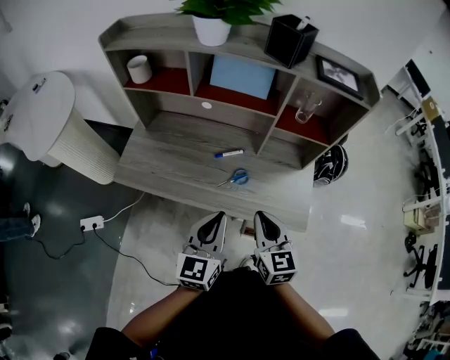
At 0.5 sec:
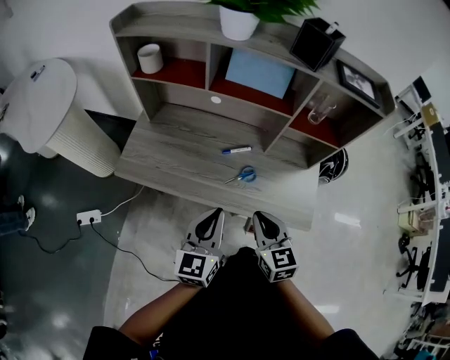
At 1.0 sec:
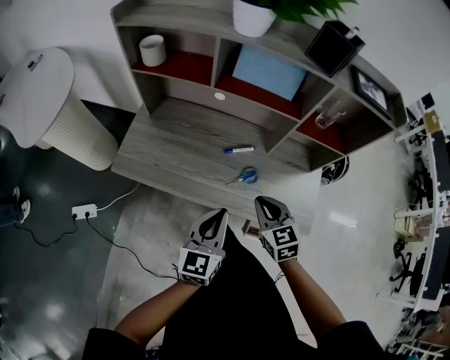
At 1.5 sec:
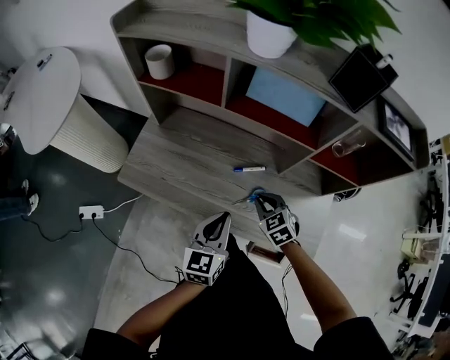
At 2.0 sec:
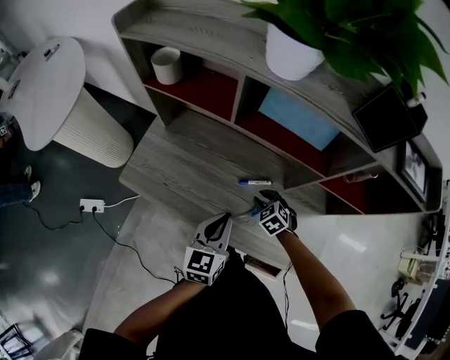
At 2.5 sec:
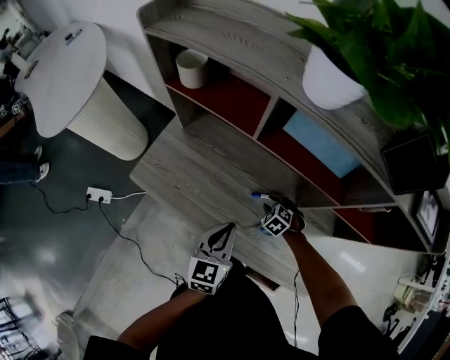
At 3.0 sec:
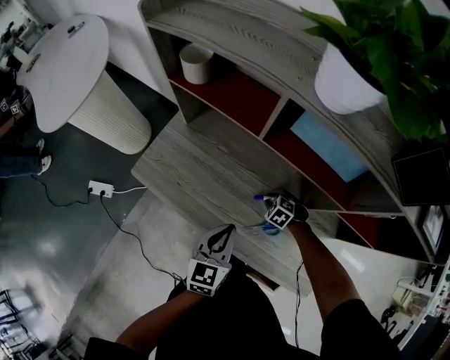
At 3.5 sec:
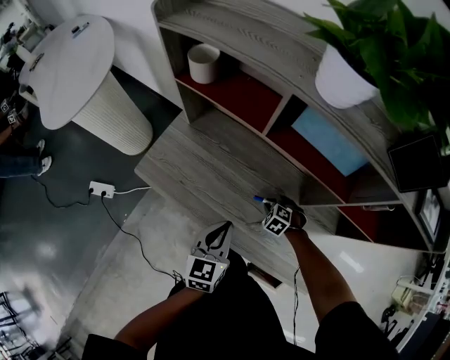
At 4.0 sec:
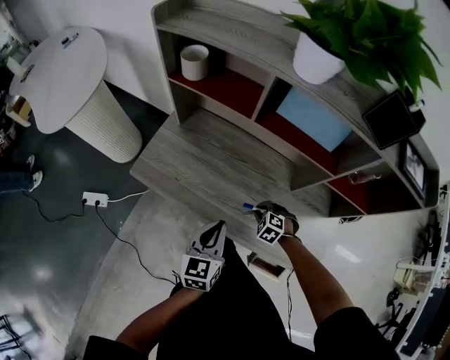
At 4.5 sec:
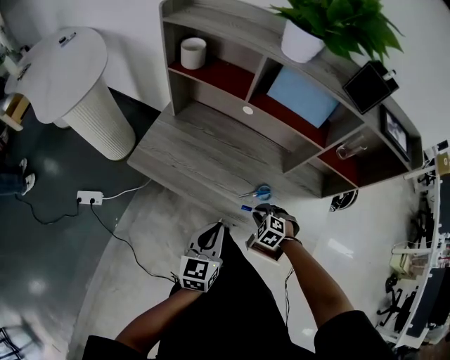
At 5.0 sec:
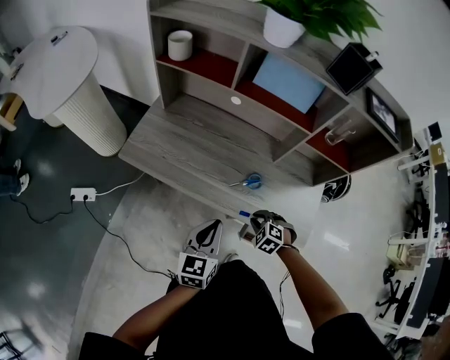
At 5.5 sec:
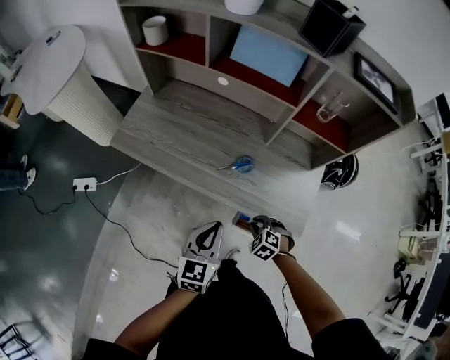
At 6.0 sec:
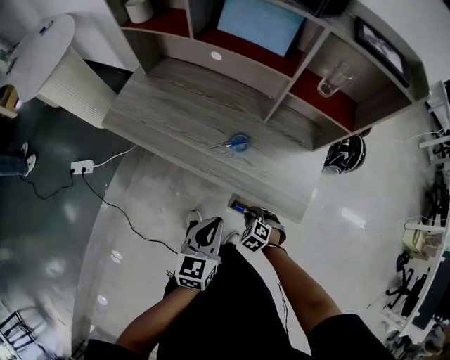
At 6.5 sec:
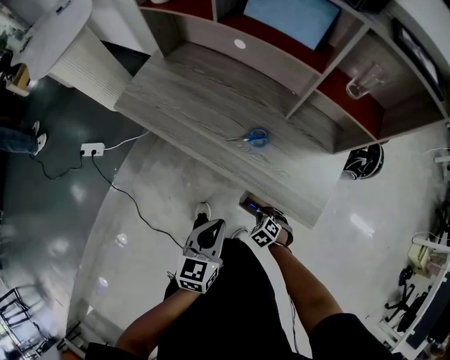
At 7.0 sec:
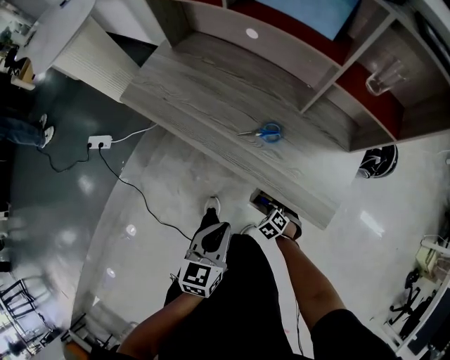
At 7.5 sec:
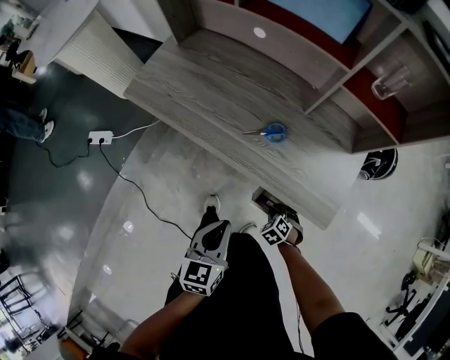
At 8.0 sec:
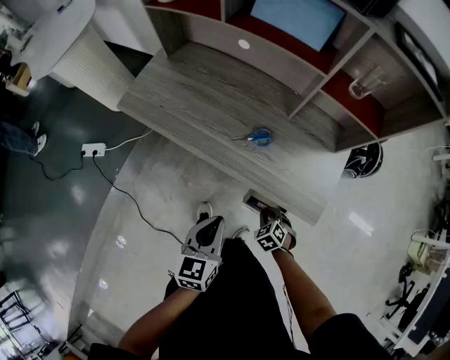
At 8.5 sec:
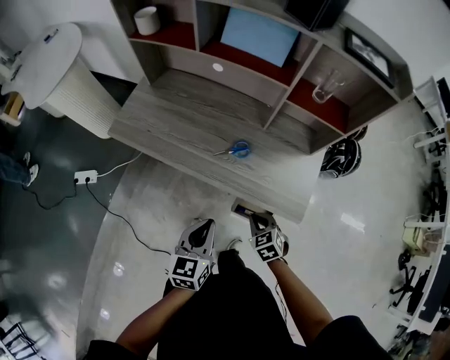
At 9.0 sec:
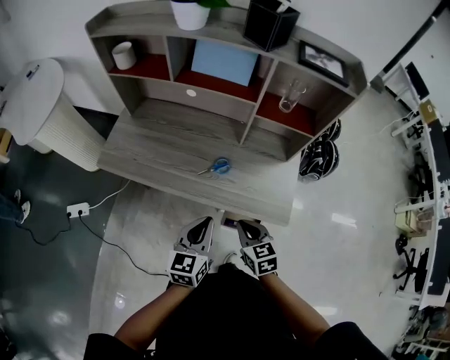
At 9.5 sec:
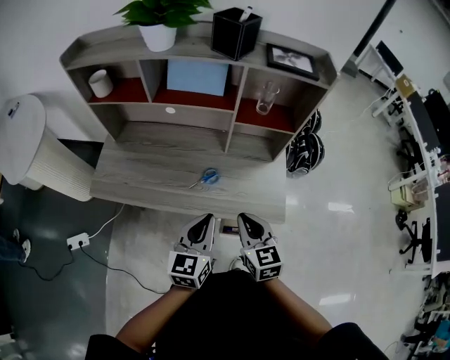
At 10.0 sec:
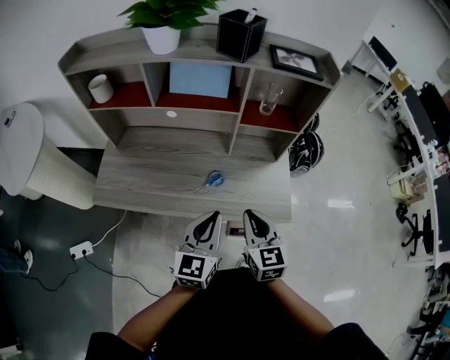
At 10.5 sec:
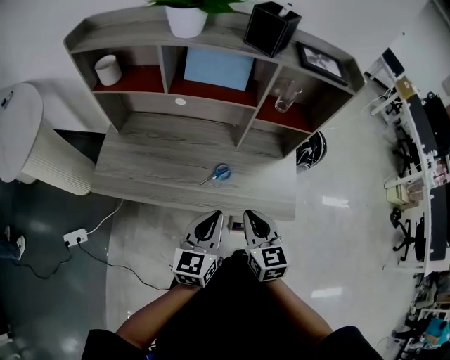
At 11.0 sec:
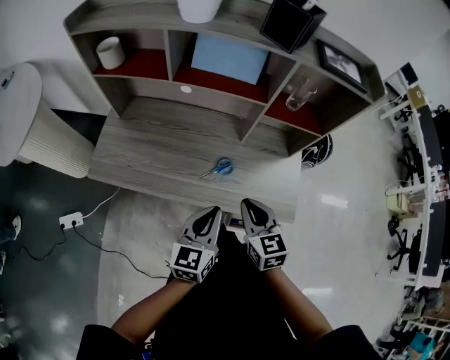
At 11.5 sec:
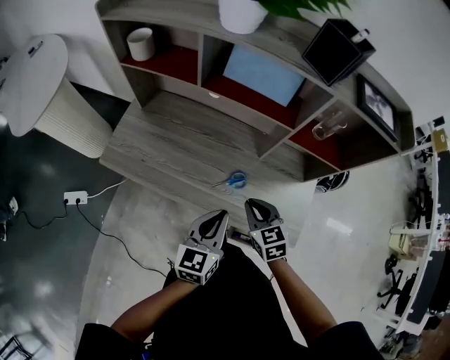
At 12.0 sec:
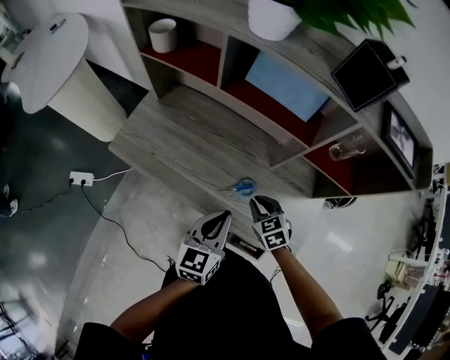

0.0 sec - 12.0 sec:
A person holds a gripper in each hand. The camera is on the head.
0.0 sec - 2.0 sec: The right gripper travels forward and downward by about 35 cm, and angles its fingers downward, by approximately 40 degrees, while the left gripper goes roughly 20 cm forward and downward.
2.0 sec - 4.0 sec: The right gripper shifts roughly 5 cm backward, and changes its angle by some 30 degrees. The left gripper moves to the left, about 5 cm.
4.0 sec - 6.0 sec: Both grippers travel together backward and to the right, approximately 30 cm.
6.0 sec - 8.0 sec: The left gripper changes place by about 5 cm, while the right gripper goes downward and returns, about 10 cm each way.
8.0 sec - 10.0 sec: The right gripper shifts some 35 cm upward, and angles its fingers upward, by approximately 50 degrees. Meanwhile the left gripper heads upward and forward, covering some 20 cm, and rotates some 30 degrees.
10.0 sec - 12.0 sec: The left gripper moves about 10 cm, and turns by some 20 degrees, while the right gripper is displaced downward by about 15 cm, and swivels about 50 degrees.

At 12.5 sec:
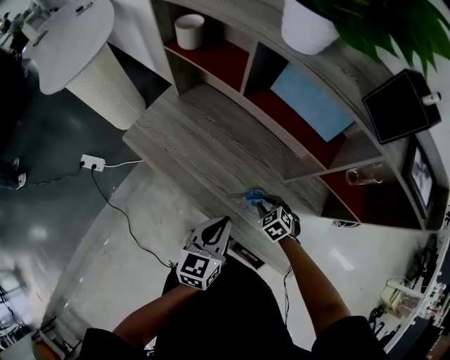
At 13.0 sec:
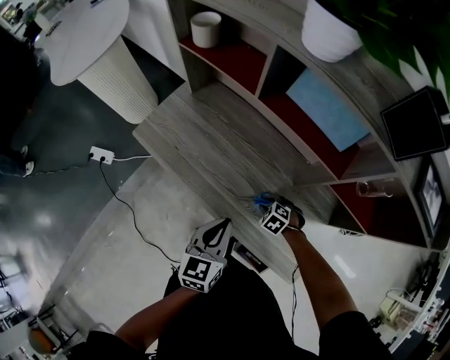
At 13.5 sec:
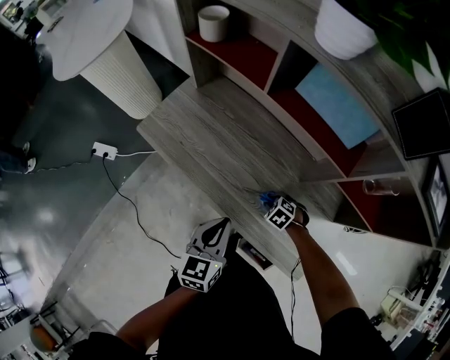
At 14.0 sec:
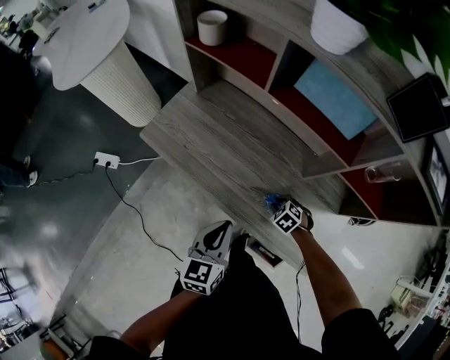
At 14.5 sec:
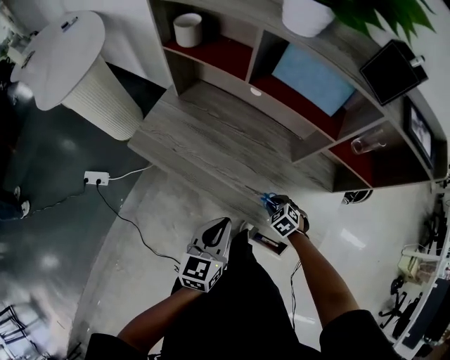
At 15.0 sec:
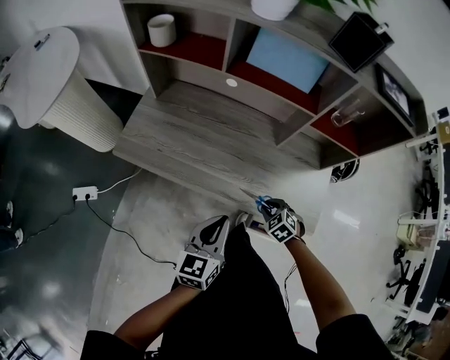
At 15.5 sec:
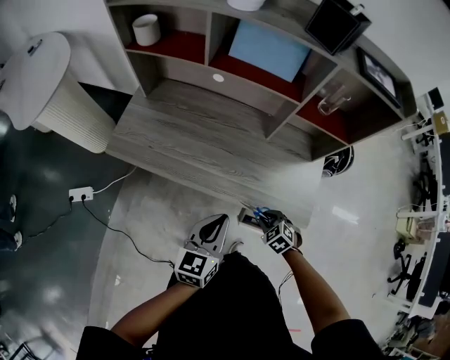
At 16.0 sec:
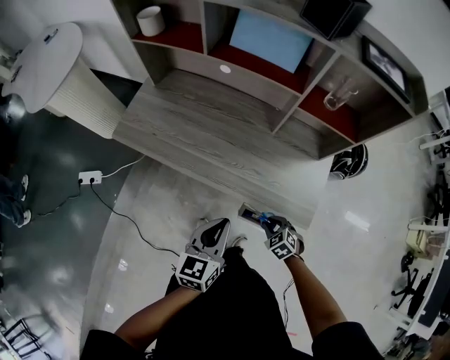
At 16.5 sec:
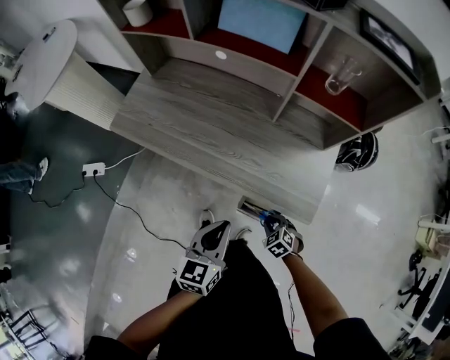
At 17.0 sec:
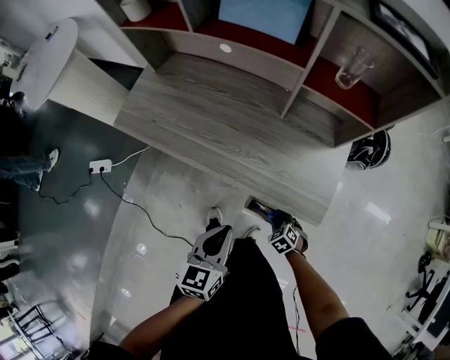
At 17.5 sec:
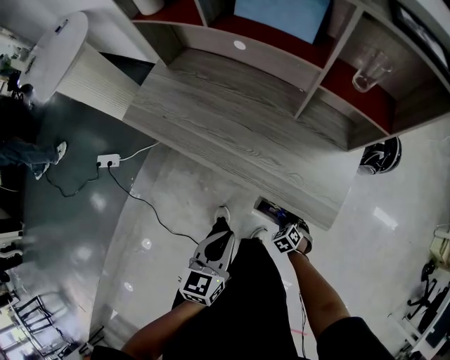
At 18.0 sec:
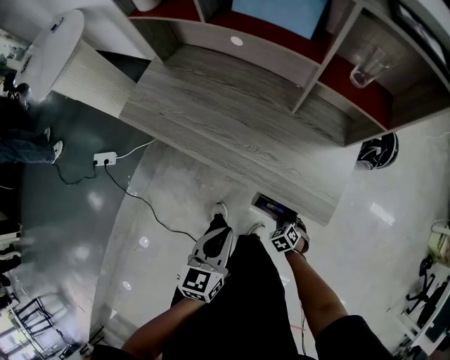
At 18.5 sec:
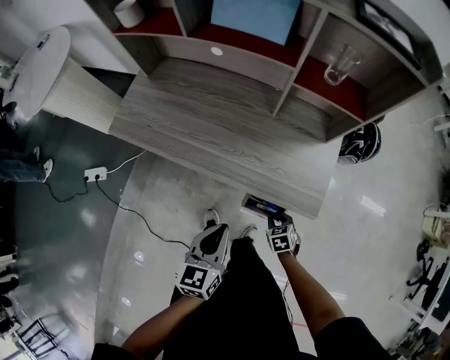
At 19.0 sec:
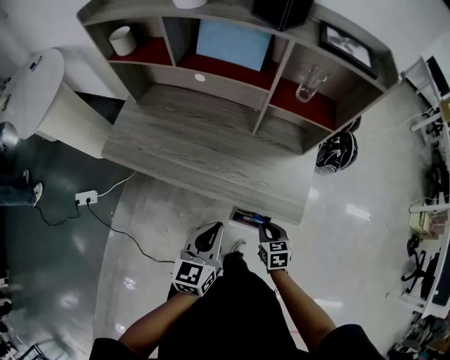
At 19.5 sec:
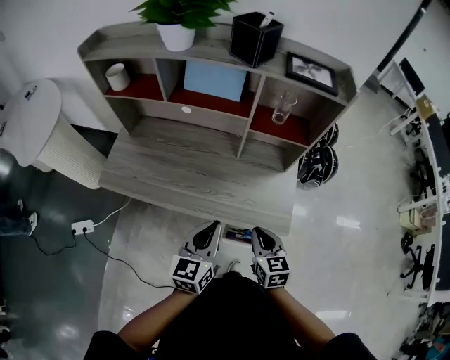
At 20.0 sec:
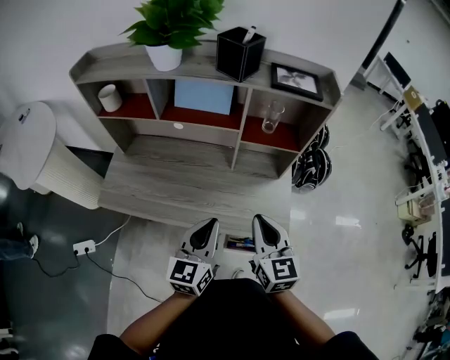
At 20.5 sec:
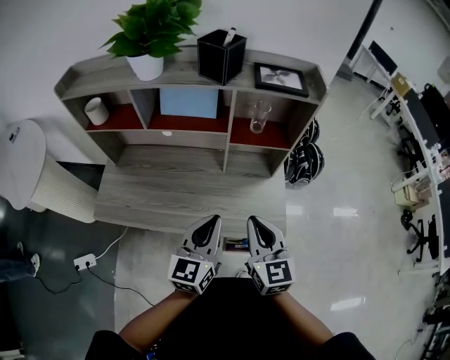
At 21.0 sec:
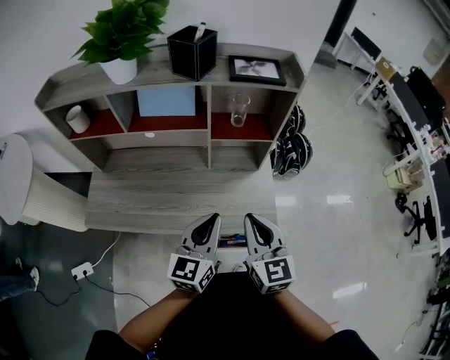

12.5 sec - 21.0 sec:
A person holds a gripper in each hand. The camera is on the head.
12.5 sec - 14.5 sec: The right gripper moves some 5 cm. Meanwhile the left gripper changes place by approximately 10 cm.
14.5 sec - 16.5 sec: Both grippers travel together backward and to the right, roughly 20 cm.
16.5 sec - 19.0 sec: The right gripper heads upward, covering roughly 10 cm, and rotates around the line of its fingers by about 40 degrees, clockwise from behind.
19.0 sec - 21.0 sec: The left gripper moves upward and forward, approximately 15 cm, and turns by some 20 degrees. The right gripper goes some 30 cm upward, and tilts its fingers roughly 40 degrees upward.

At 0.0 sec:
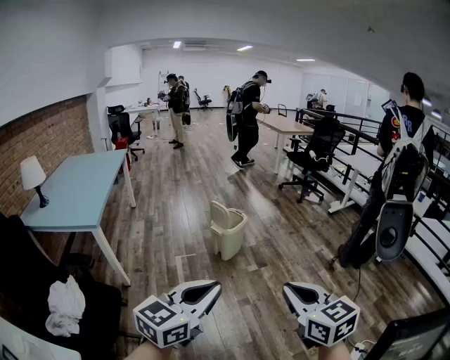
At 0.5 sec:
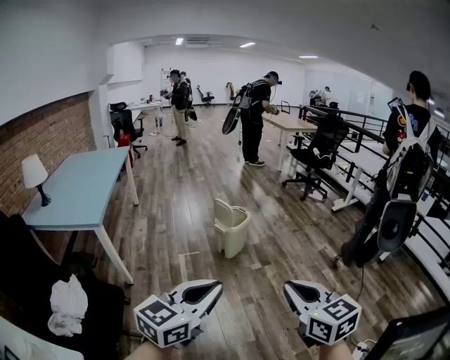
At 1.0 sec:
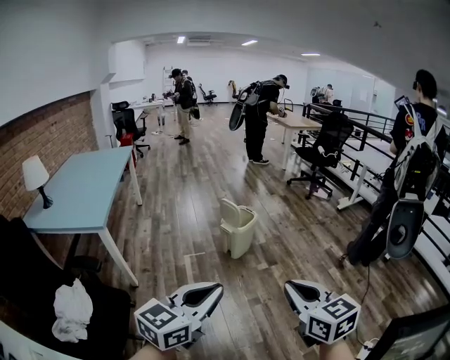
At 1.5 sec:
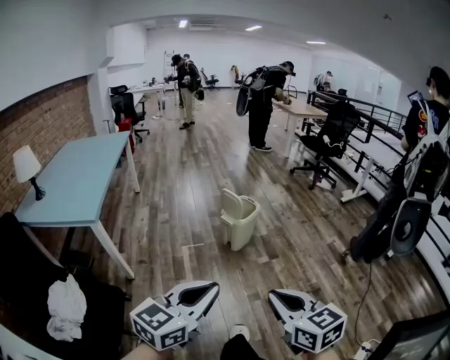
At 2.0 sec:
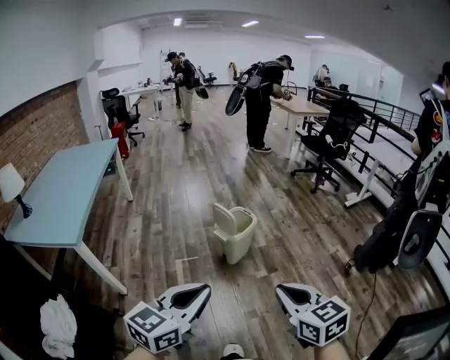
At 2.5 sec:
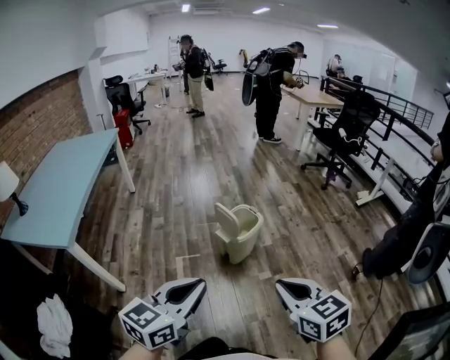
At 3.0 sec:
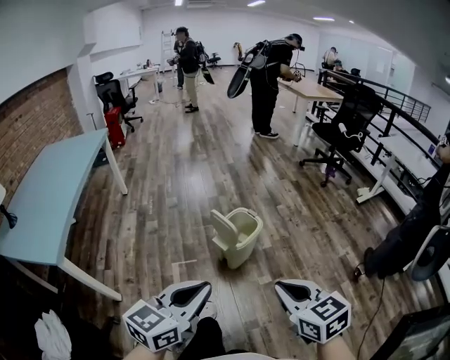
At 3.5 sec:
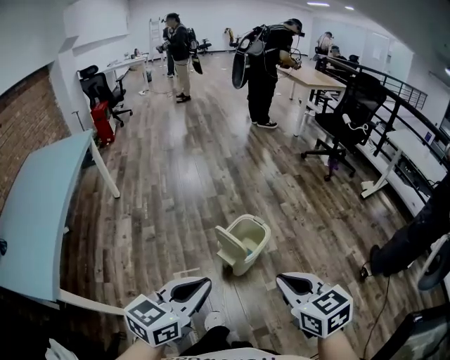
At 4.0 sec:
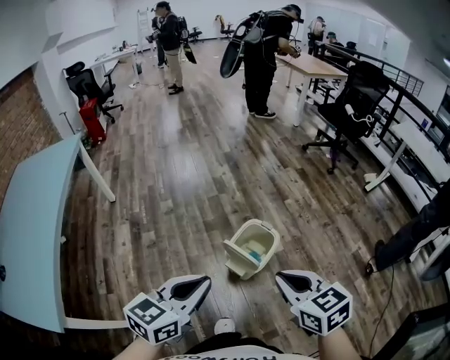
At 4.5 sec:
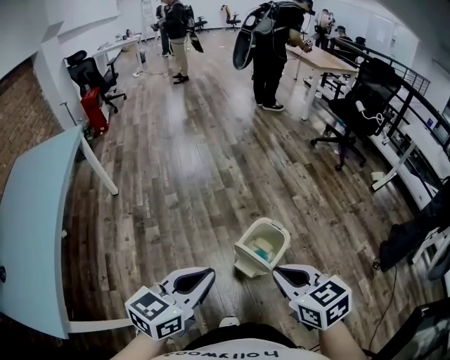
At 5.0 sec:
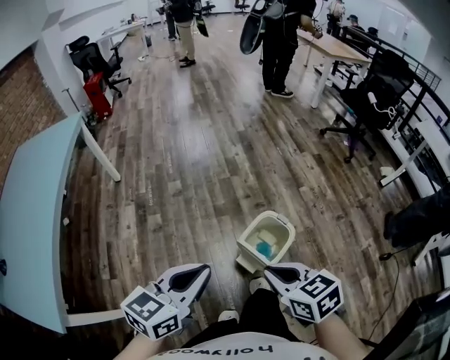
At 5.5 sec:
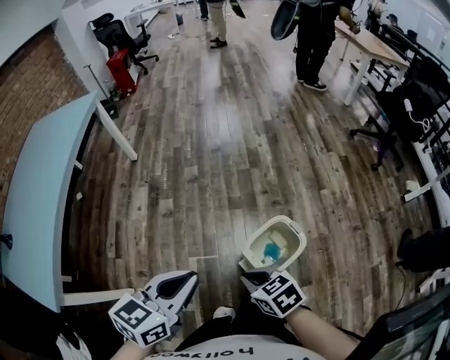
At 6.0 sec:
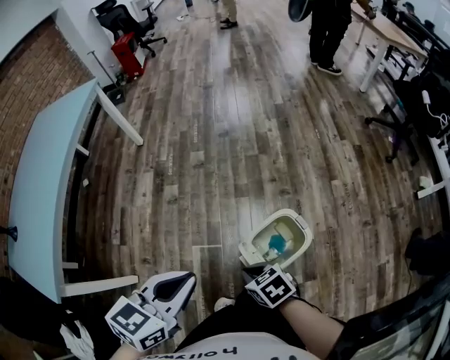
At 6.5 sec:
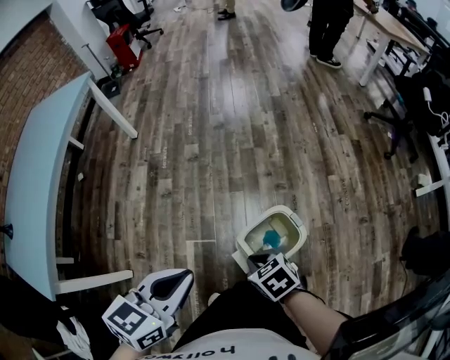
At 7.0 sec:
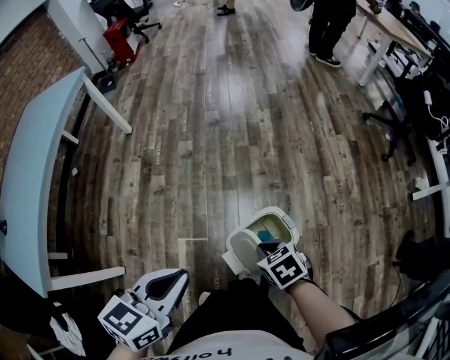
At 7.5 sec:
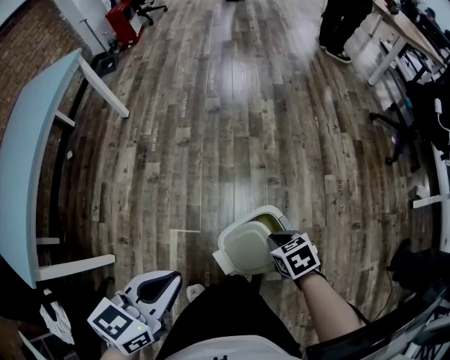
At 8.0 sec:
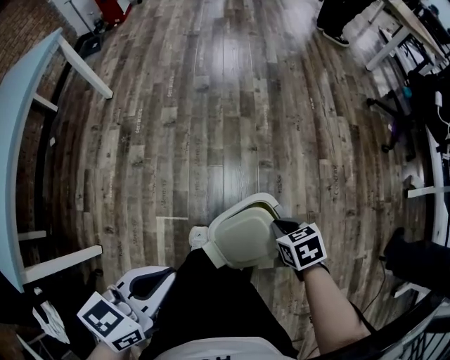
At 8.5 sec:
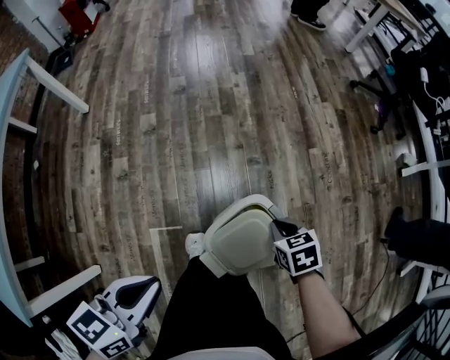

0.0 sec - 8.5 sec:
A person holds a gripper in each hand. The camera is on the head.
0.0 sec - 2.0 sec: Both grippers move forward, roughly 25 cm.
2.0 sec - 4.0 sec: The pair of grippers is taken forward, roughly 50 cm.
4.0 sec - 6.5 sec: The left gripper changes place by some 15 cm, and swivels approximately 30 degrees; the right gripper shifts roughly 25 cm downward, and turns by roughly 40 degrees.
6.5 sec - 8.5 sec: The left gripper shifts about 15 cm downward and forward; the right gripper heads to the right, downward and forward, covering about 25 cm, and changes its angle by some 30 degrees.
